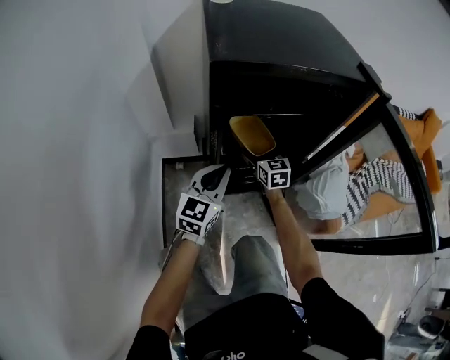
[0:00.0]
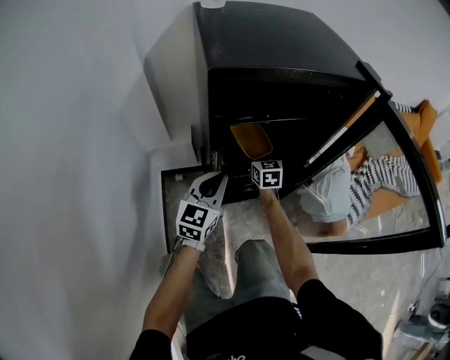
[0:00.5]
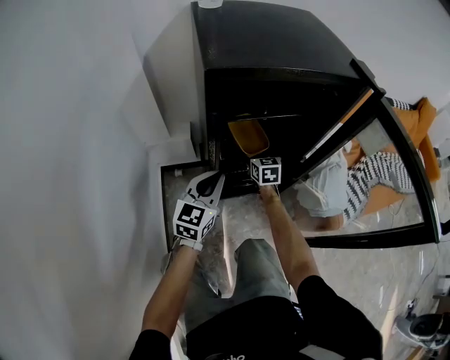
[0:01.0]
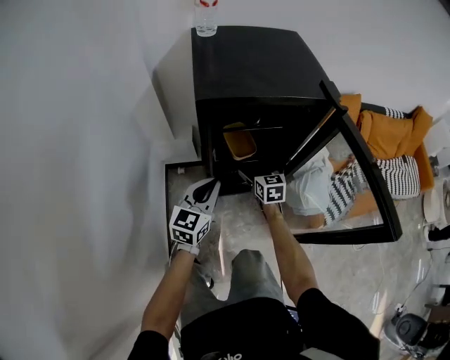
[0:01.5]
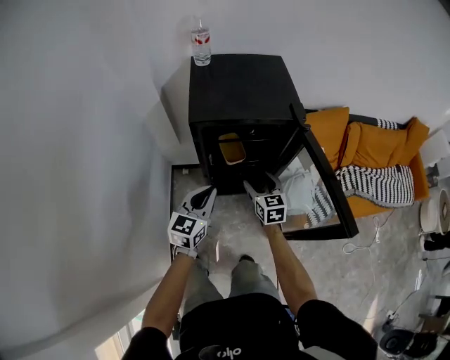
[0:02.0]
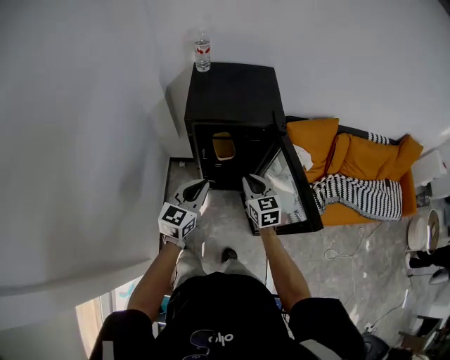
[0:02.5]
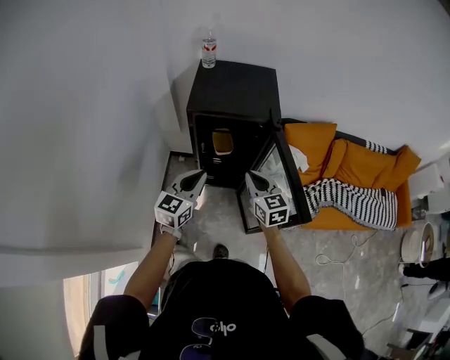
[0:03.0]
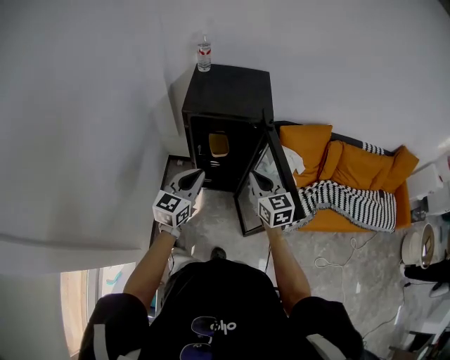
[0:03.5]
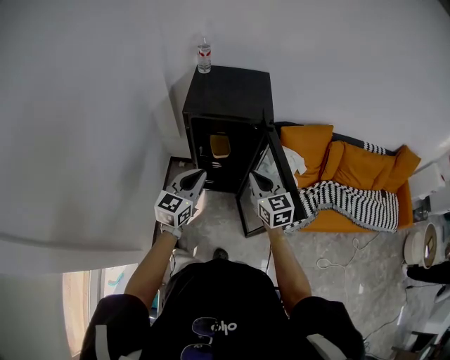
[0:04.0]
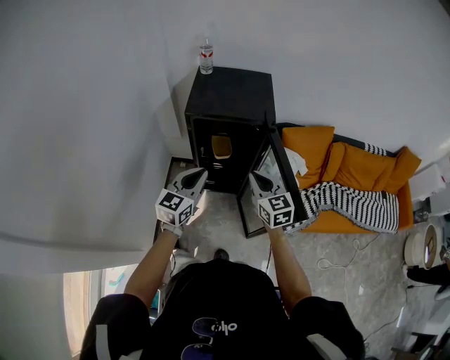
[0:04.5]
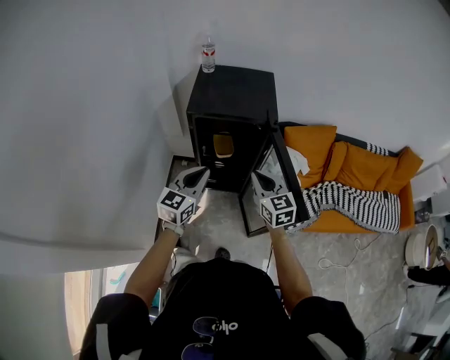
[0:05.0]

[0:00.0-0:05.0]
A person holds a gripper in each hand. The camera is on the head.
0:00.0 to 0:02.5: The two grippers go roughly 40 cm upward and backward. The right gripper closes its fingers.
0:02.5 to 0:05.0: The left gripper ends up about 5 cm from where it was. Meanwhile the right gripper travels upward, backward and to the right by about 10 cm.

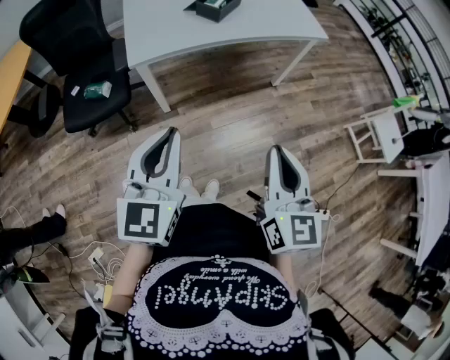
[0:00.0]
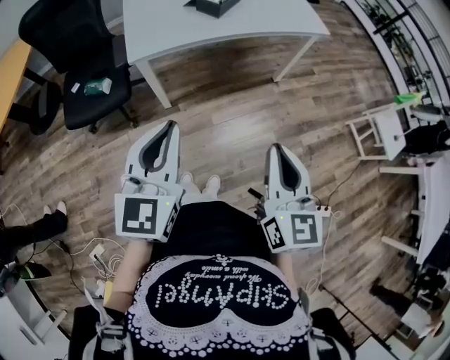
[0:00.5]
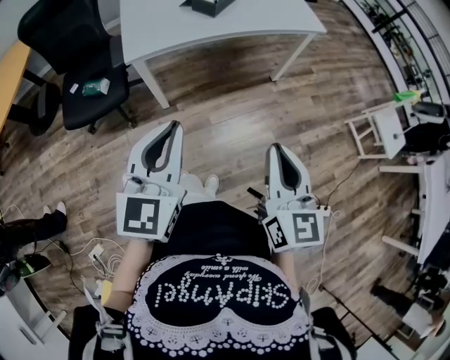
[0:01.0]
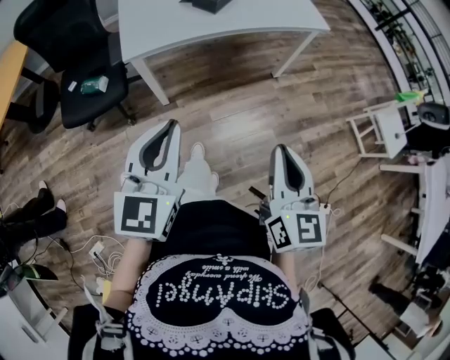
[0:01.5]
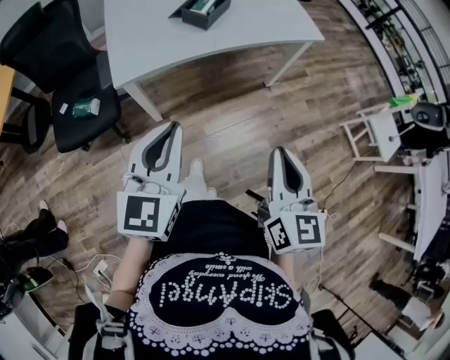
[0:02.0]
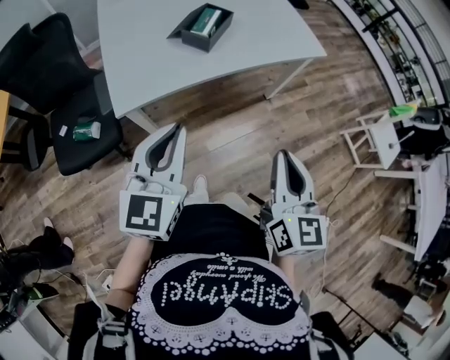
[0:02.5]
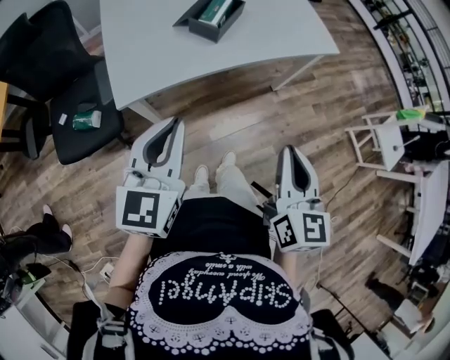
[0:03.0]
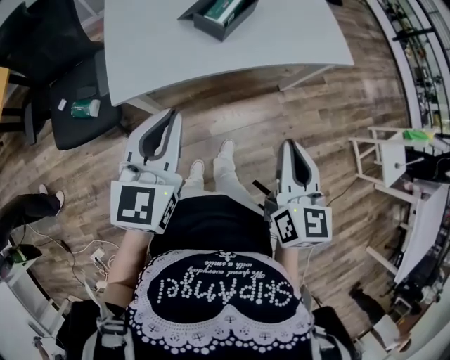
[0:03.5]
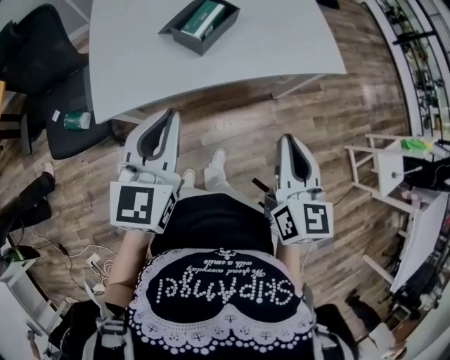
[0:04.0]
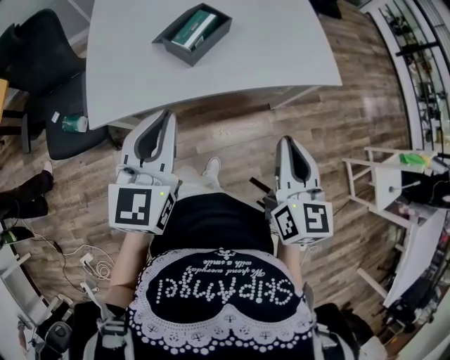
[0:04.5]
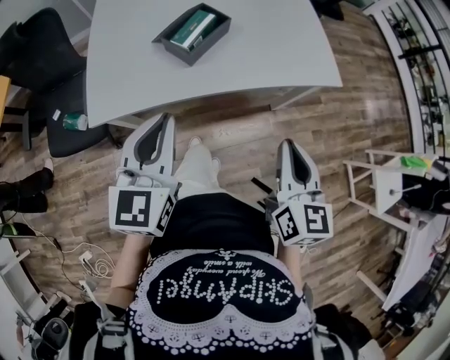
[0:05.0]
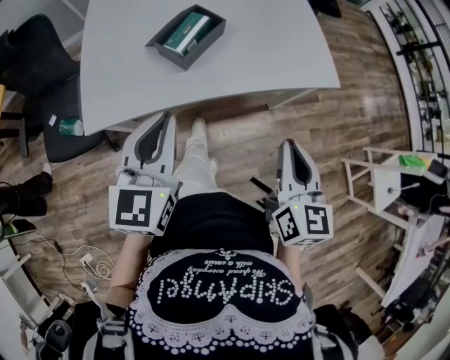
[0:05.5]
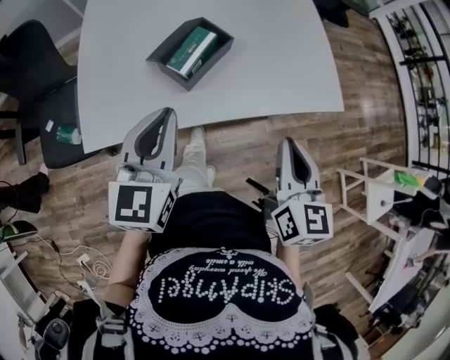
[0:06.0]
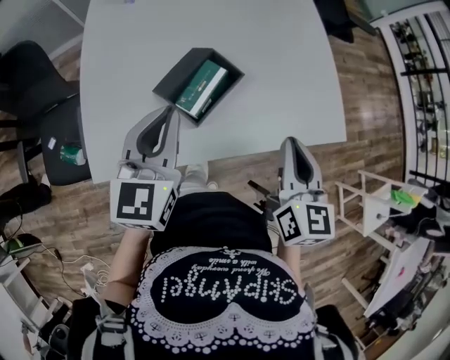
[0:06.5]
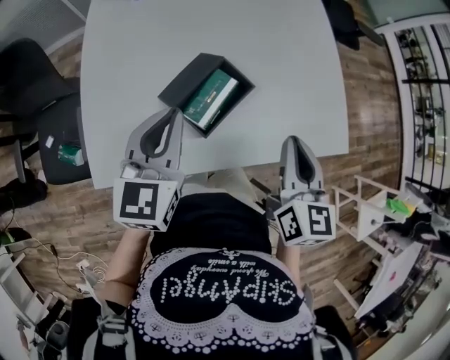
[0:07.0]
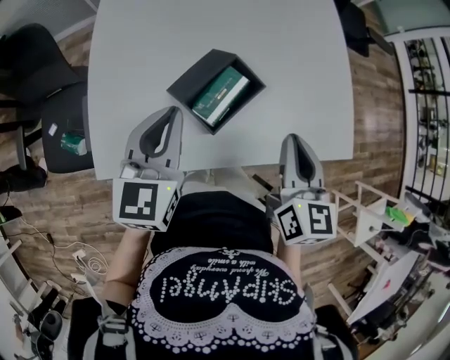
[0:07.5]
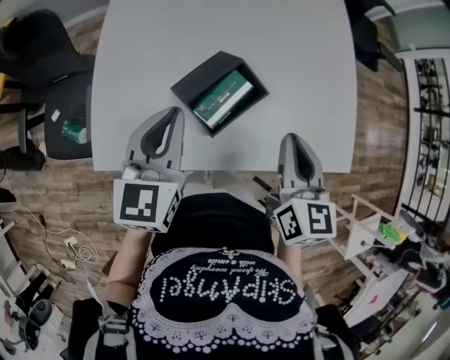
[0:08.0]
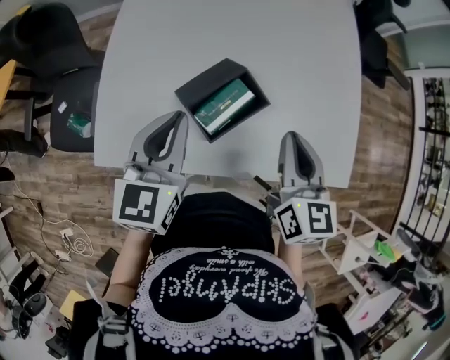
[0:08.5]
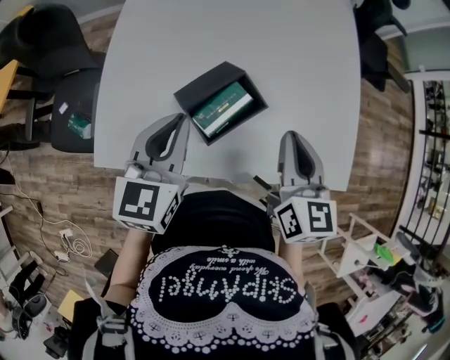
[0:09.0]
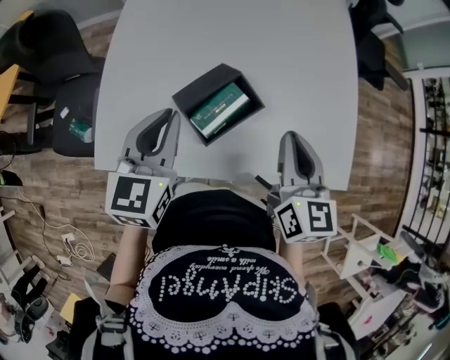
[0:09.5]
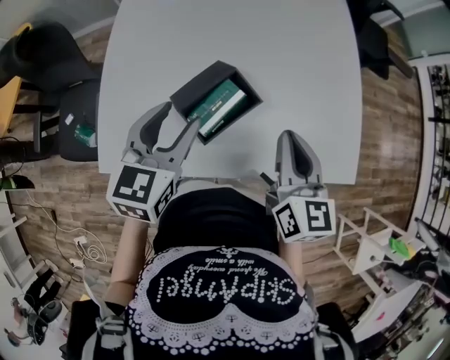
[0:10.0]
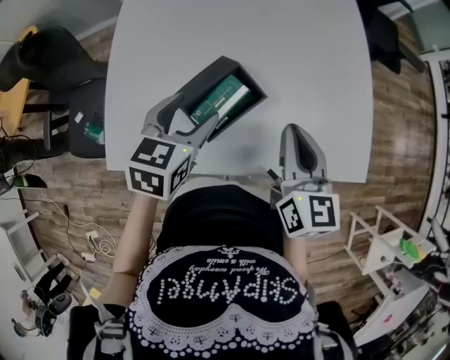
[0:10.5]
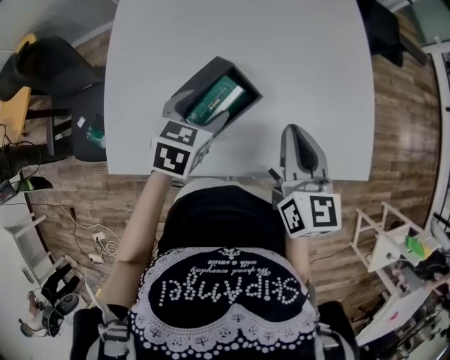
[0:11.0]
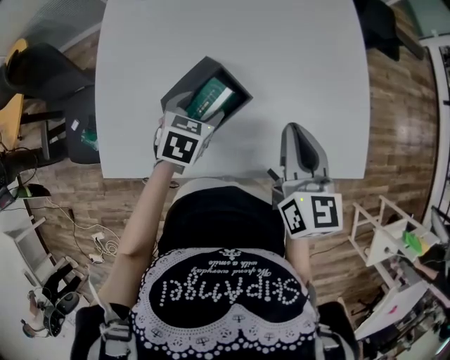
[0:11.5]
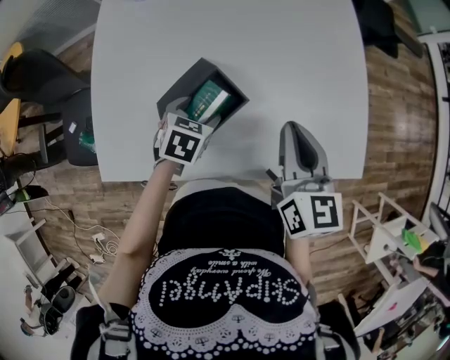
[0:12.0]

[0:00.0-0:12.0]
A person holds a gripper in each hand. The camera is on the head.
0:00.0 to 0:02.0: Both grippers travel together forward, about 10 cm.
0:02.0 to 0:04.0: Both grippers move forward, about 25 cm.
0:04.0 to 0:06.0: The grippers both shift forward by about 15 cm.
0:06.0 to 0:08.0: Both grippers move forward and to the left, approximately 20 cm.
0:08.0 to 0:10.0: The left gripper opens its fingers.
0:10.0 to 0:12.0: The right gripper moves some 5 cm; the left gripper moves downward, roughly 20 cm, and points its fingers about 30 degrees further downward.

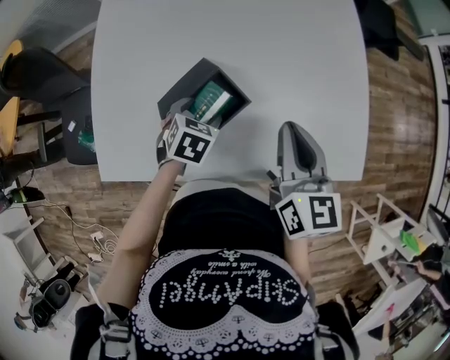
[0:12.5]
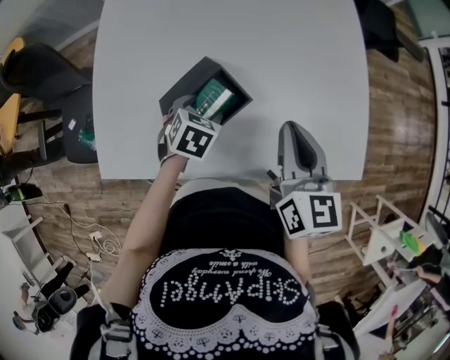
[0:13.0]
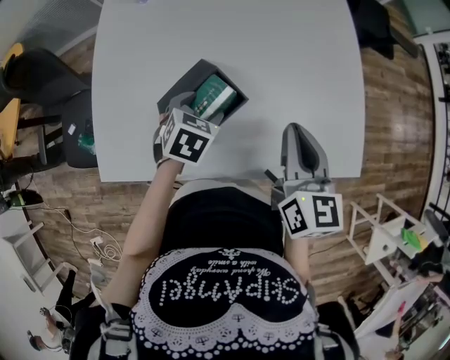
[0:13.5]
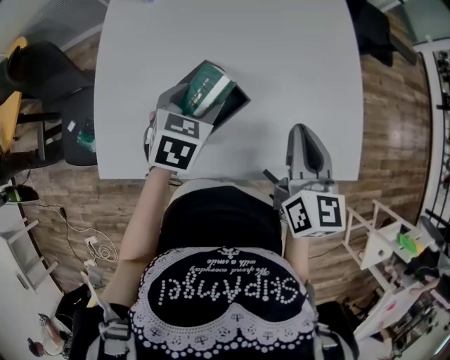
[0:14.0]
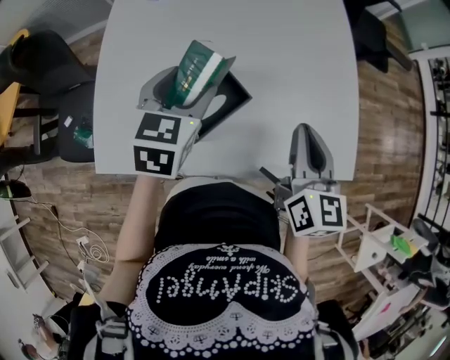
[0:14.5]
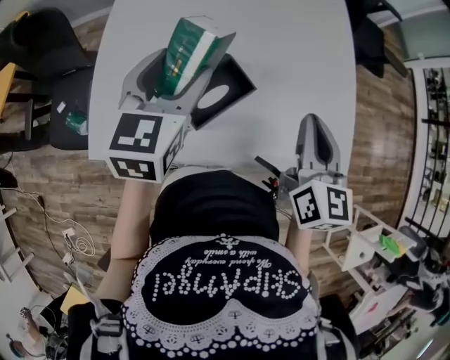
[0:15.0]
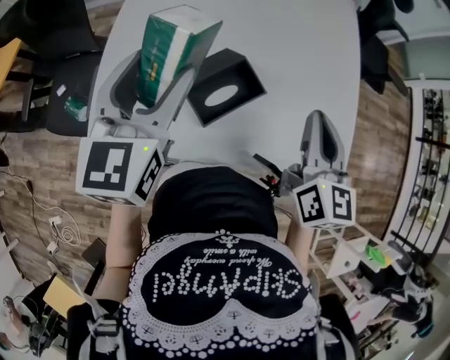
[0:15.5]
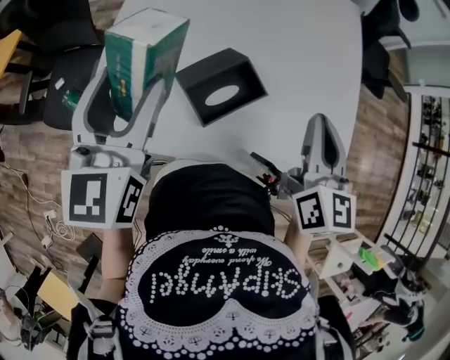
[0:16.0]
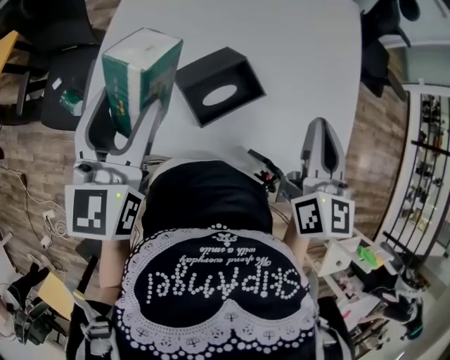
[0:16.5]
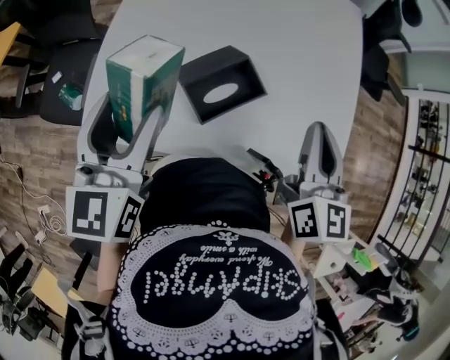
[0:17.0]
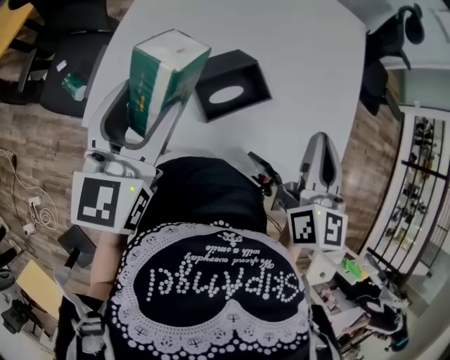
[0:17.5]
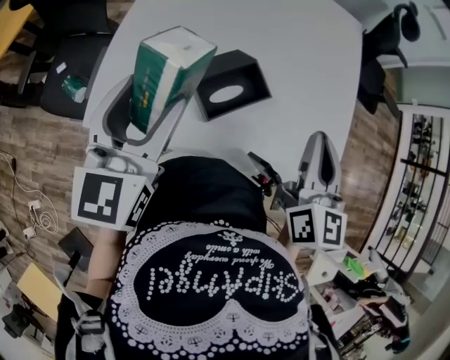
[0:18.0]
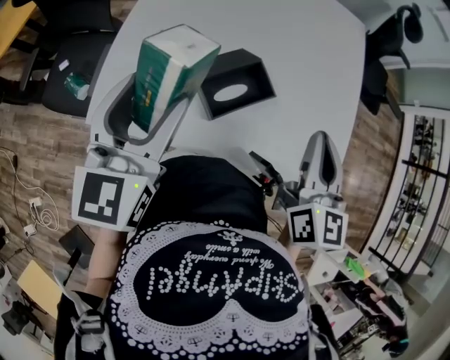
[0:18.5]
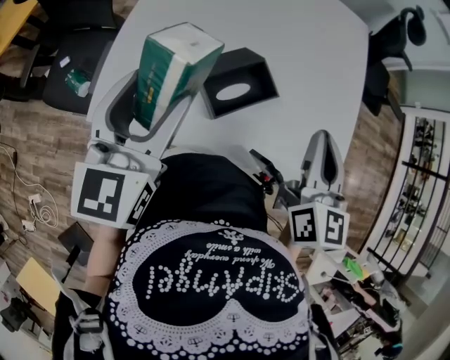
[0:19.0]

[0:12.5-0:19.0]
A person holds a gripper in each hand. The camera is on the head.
0:12.5 to 0:14.5: The left gripper travels upward by roughly 20 cm, and turns by some 30 degrees.
0:14.5 to 0:17.0: The right gripper moves upward, roughly 5 cm. The left gripper is displaced to the left, backward and upward by roughly 20 cm, and turns by approximately 30 degrees.
0:17.0 to 0:19.0: There are only small adjustments of the grippers.

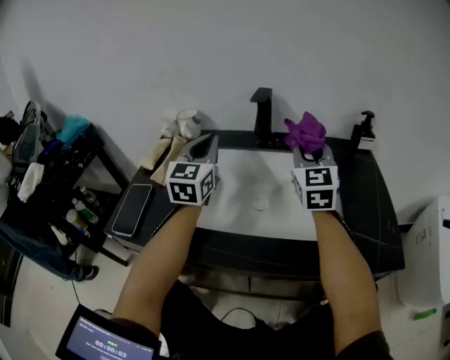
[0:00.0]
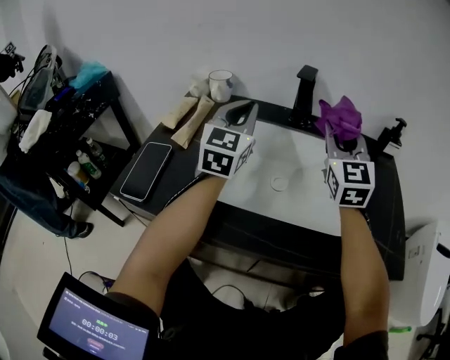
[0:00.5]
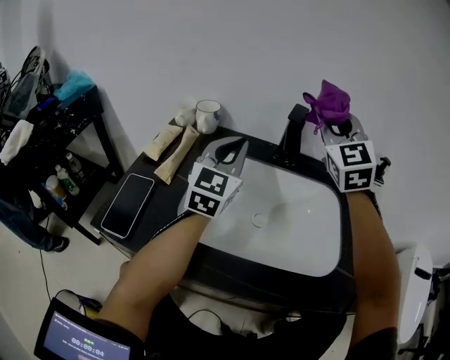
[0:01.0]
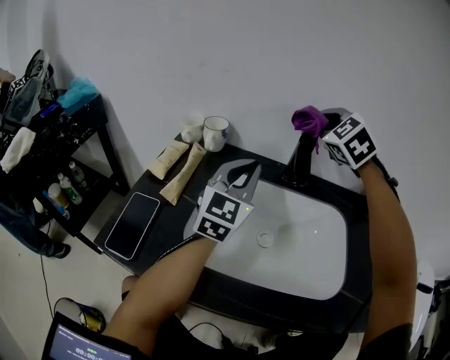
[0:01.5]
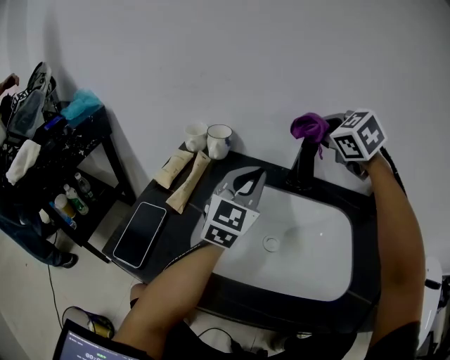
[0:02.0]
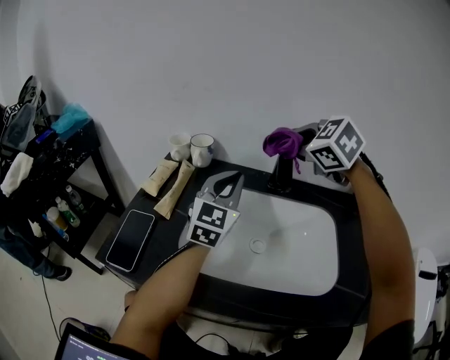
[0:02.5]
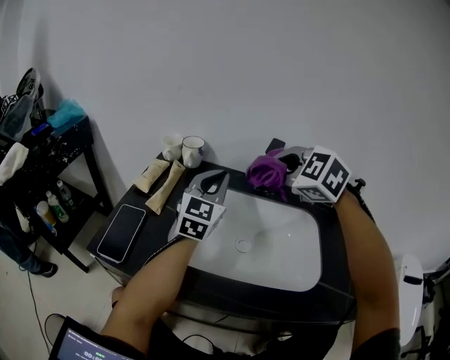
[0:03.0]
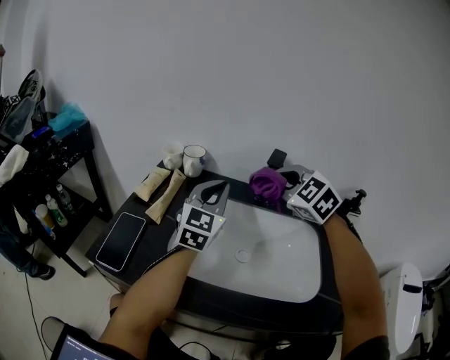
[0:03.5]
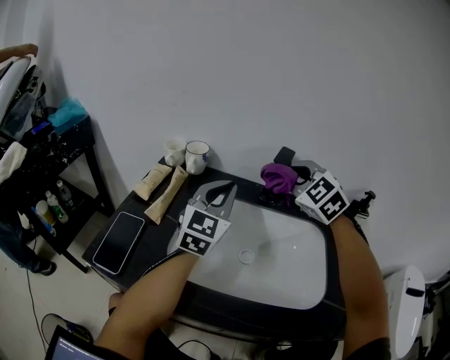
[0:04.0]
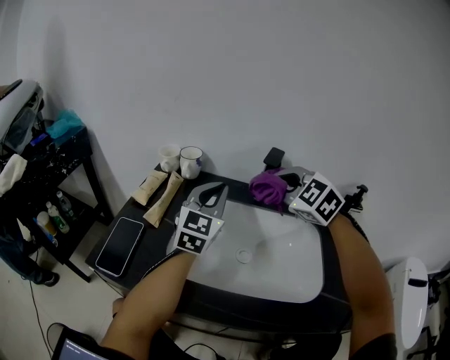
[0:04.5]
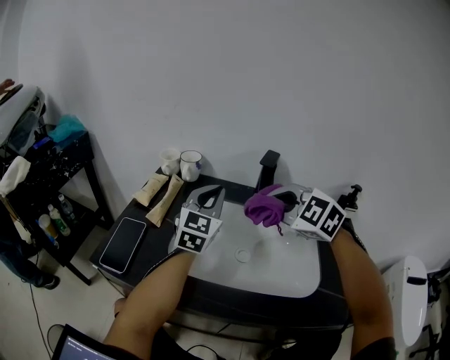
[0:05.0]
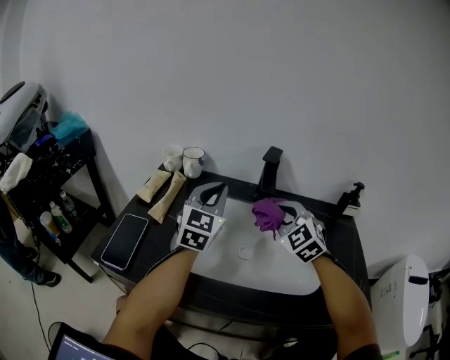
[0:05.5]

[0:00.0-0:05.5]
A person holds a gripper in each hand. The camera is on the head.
0:00.0 to 0:02.0: The left gripper shifts by roughly 5 cm, while the right gripper heads forward, upward and to the left, covering roughly 20 cm, and points its fingers roughly 30 degrees further downward.
0:02.0 to 0:03.5: The right gripper goes about 10 cm backward and downward.
0:03.5 to 0:05.5: The right gripper is displaced downward by approximately 10 cm.
